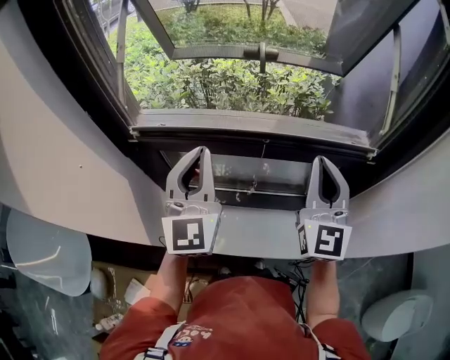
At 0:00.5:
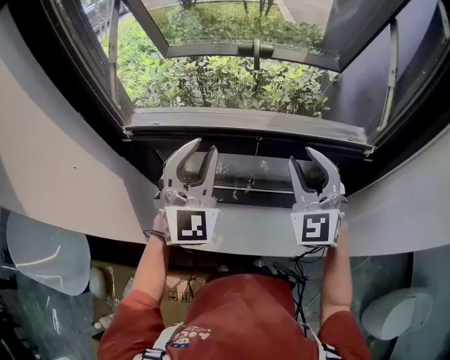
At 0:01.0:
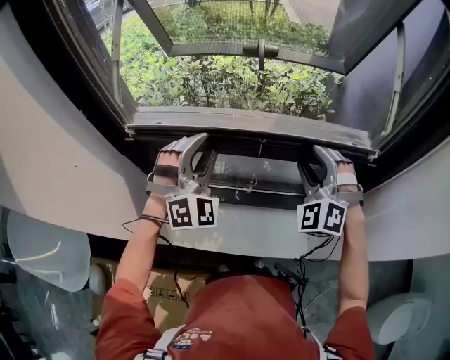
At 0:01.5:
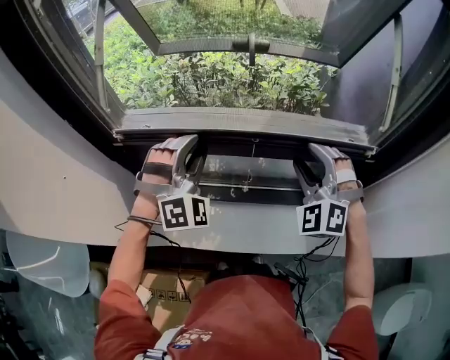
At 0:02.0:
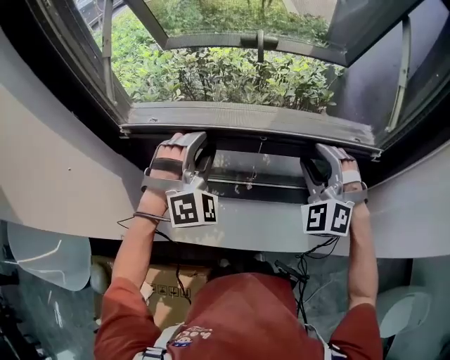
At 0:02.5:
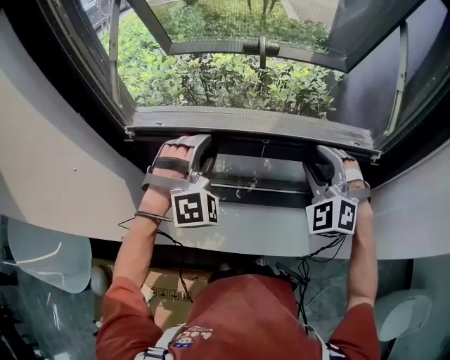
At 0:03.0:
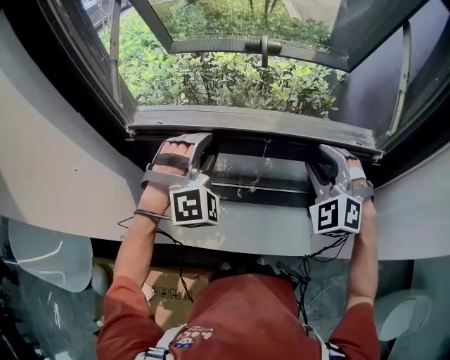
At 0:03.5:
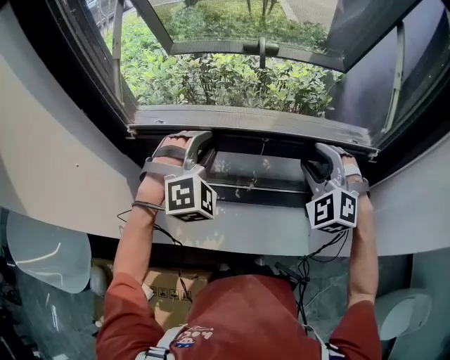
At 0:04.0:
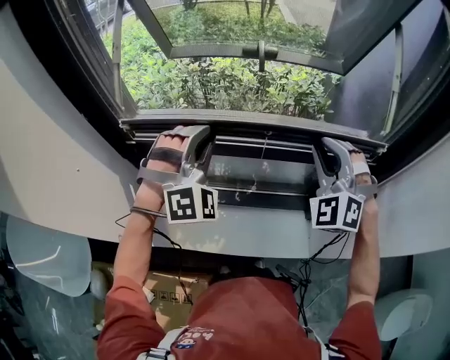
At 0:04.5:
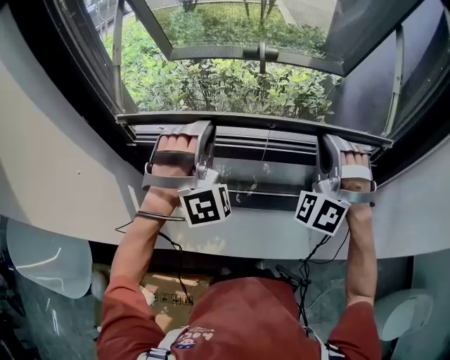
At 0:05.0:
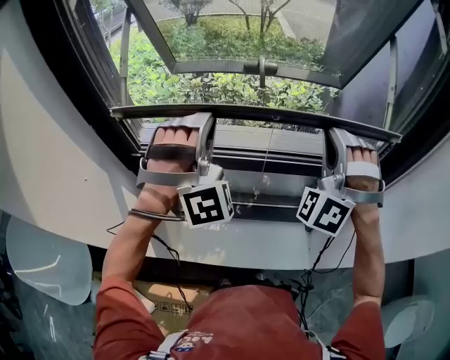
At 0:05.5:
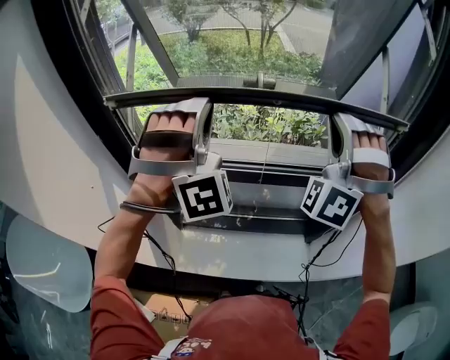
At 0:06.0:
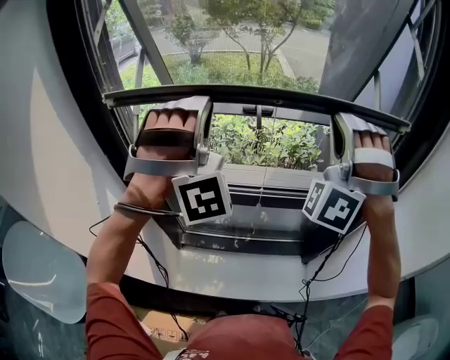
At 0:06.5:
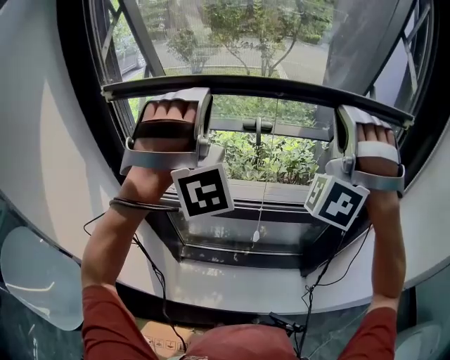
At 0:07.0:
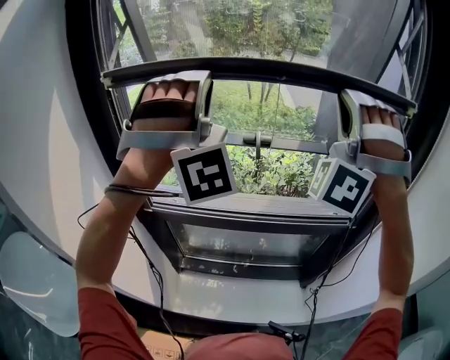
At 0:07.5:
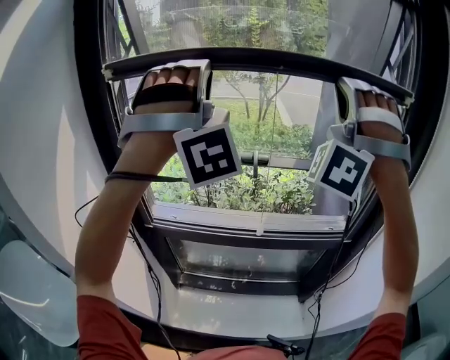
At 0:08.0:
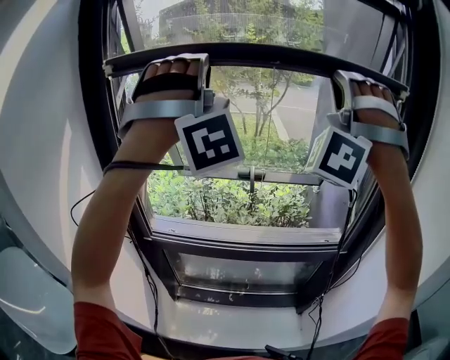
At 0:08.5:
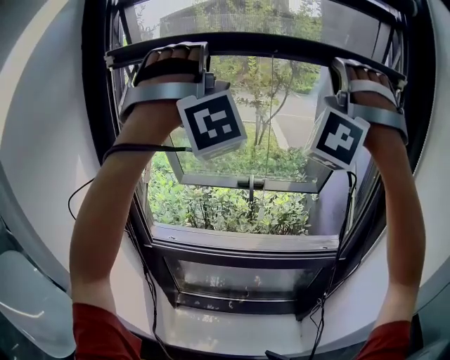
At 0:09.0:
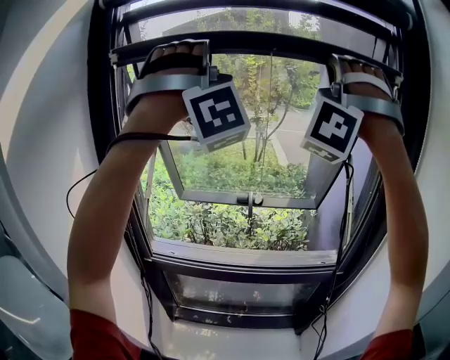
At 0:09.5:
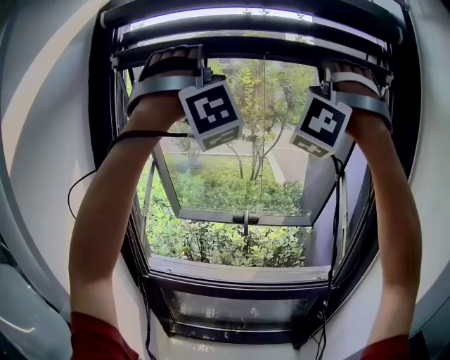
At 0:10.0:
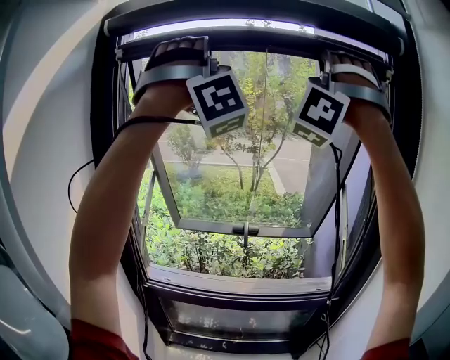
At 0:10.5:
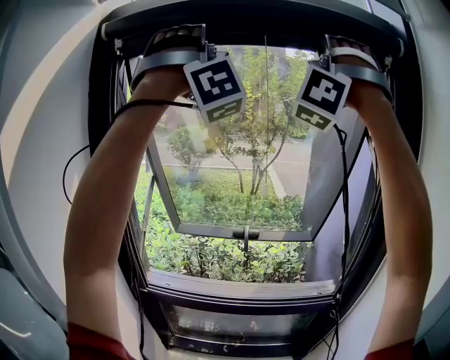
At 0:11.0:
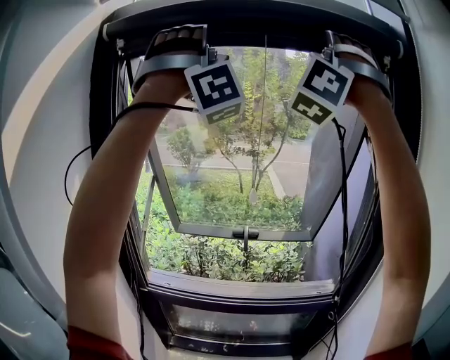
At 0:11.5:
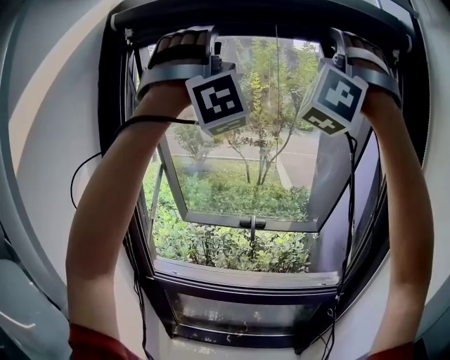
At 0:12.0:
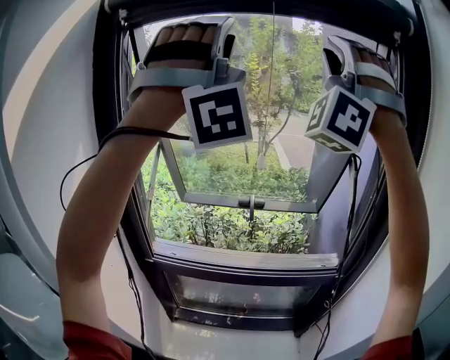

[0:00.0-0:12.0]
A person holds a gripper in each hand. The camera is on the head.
0:00.0 to 0:02.0: Both grippers move downward and forward, some 10 cm. The right gripper rotates around the line of its fingers by approximately 50 degrees, counterclockwise from behind, and opens up; the left gripper twists approximately 60 degrees clockwise, seen from behind, and opens up.
0:02.0 to 0:04.0: Both grippers move upward, about 5 cm. The left gripper closes up. The right gripper closes.
0:04.0 to 0:06.0: Both grippers move upward, roughly 20 cm. The left gripper swivels roughly 30 degrees; the right gripper rotates about 40 degrees.
0:06.0 to 0:08.0: The two grippers go roughly 25 cm upward.
0:08.0 to 0:10.0: The two grippers go some 20 cm upward.
0:10.0 to 0:12.0: The right gripper changes place by approximately 5 cm, while the left gripper moves backward, roughly 5 cm.

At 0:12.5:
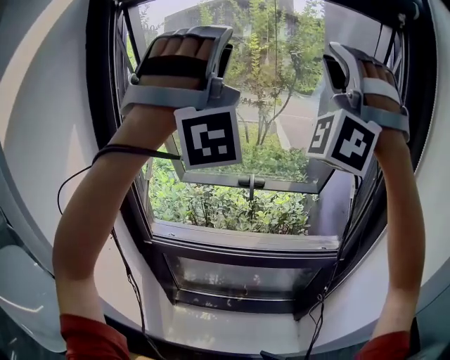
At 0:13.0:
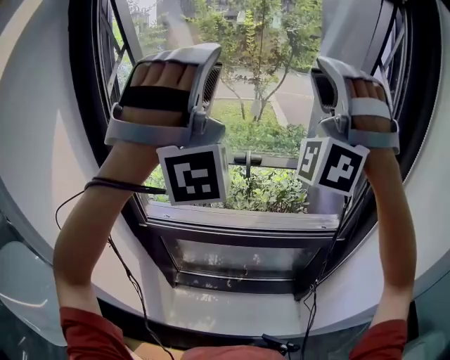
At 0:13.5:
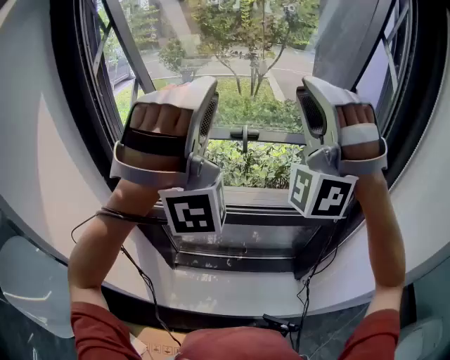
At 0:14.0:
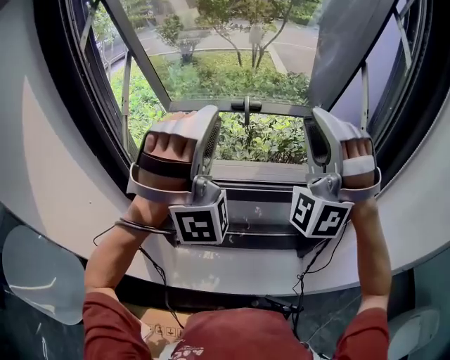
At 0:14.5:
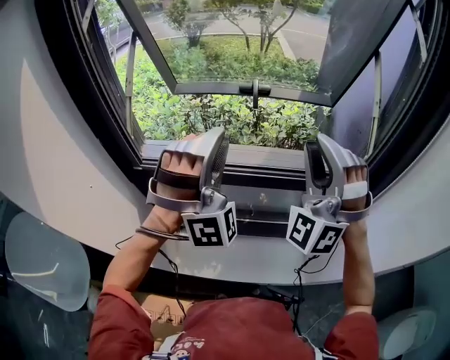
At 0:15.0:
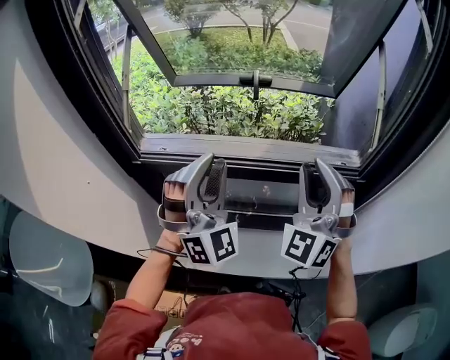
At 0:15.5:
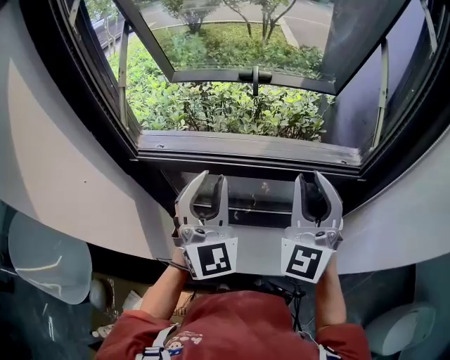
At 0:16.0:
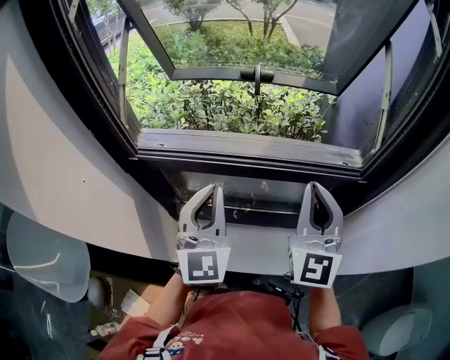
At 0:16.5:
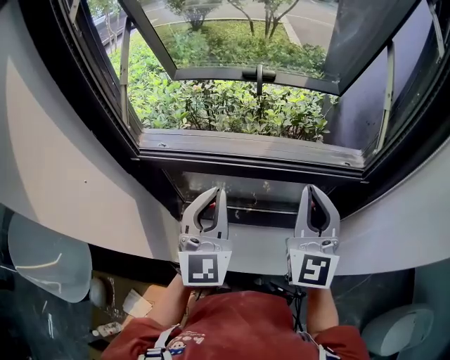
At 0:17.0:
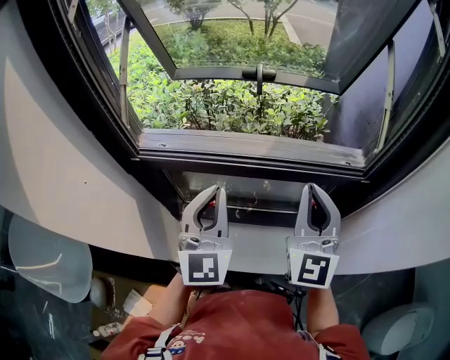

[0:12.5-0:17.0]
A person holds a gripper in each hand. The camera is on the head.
0:12.5 to 0:14.5: The two grippers go some 40 cm downward. The left gripper tilts its fingers some 30 degrees downward; the right gripper changes its angle by some 30 degrees.
0:14.5 to 0:17.0: The left gripper is displaced downward and backward by approximately 10 cm, rolls counterclockwise, seen from behind, by approximately 80 degrees, and closes, while the right gripper moves downward, some 10 cm, twists approximately 60 degrees clockwise, seen from behind, and closes its fingers.

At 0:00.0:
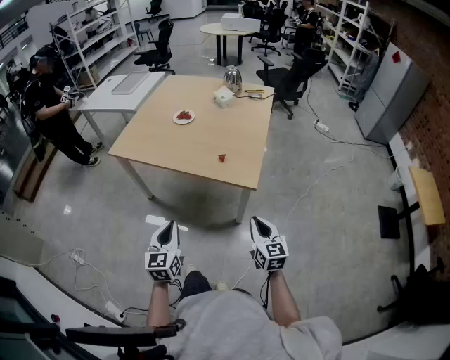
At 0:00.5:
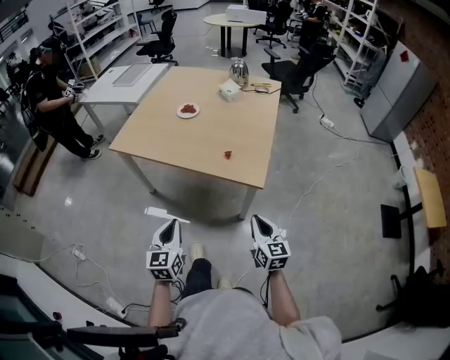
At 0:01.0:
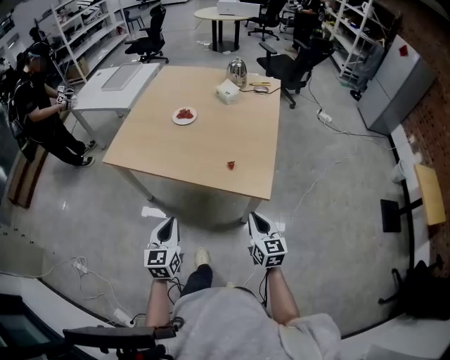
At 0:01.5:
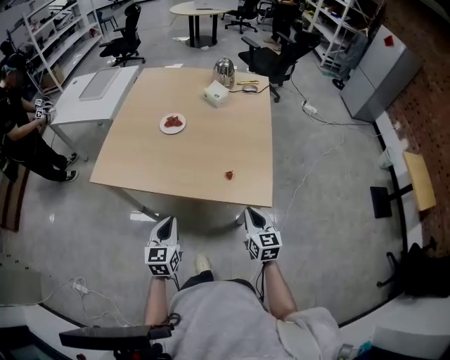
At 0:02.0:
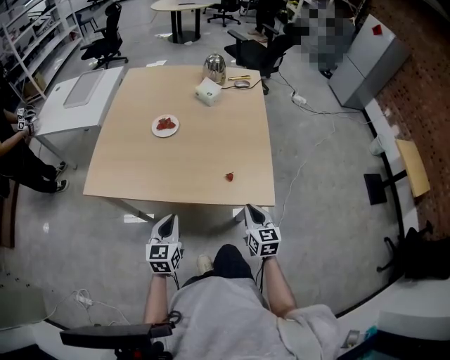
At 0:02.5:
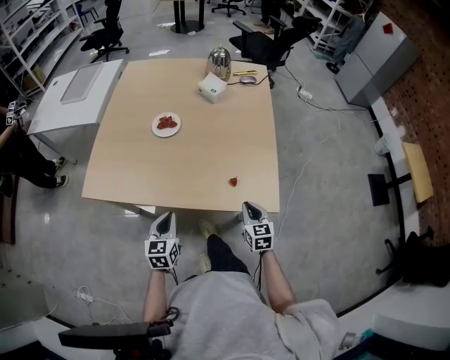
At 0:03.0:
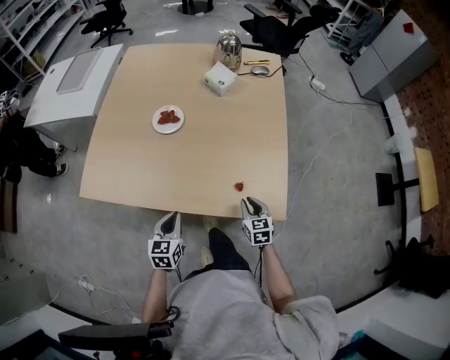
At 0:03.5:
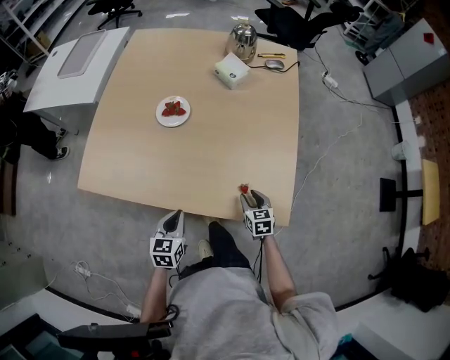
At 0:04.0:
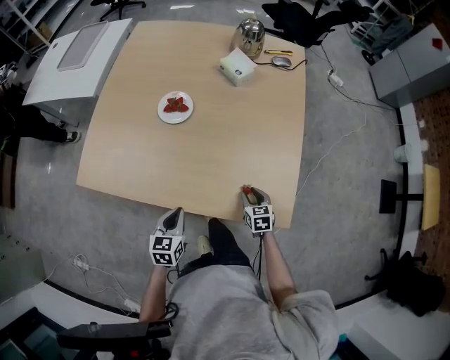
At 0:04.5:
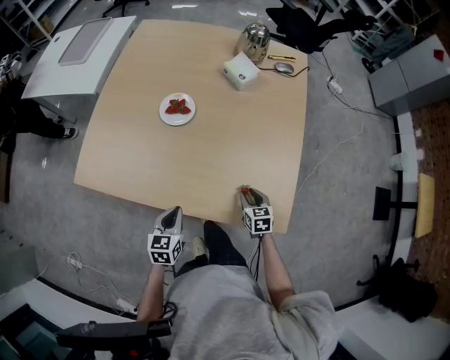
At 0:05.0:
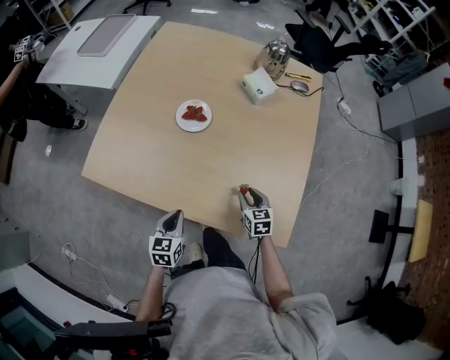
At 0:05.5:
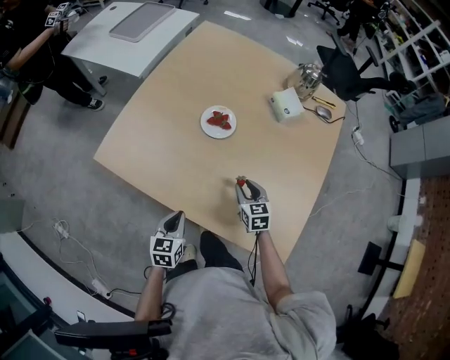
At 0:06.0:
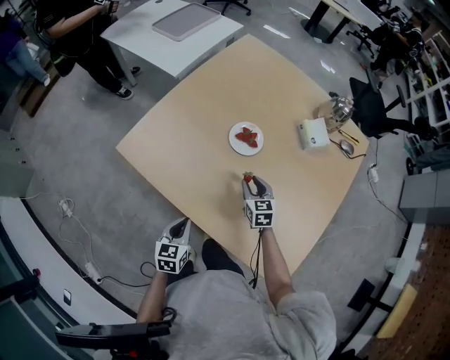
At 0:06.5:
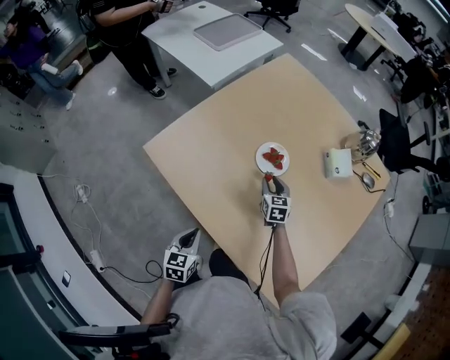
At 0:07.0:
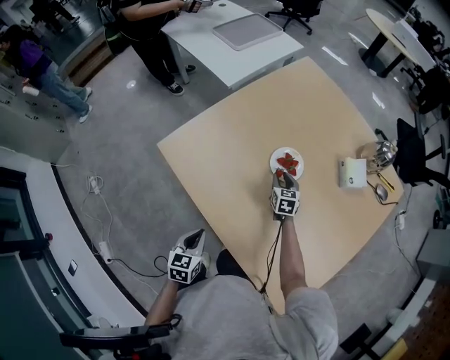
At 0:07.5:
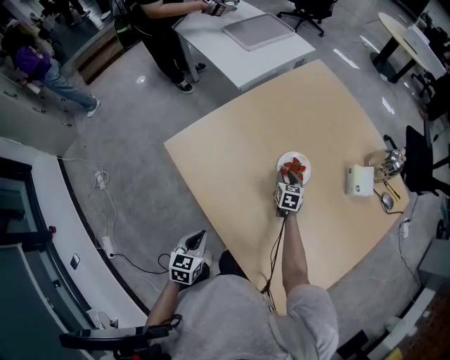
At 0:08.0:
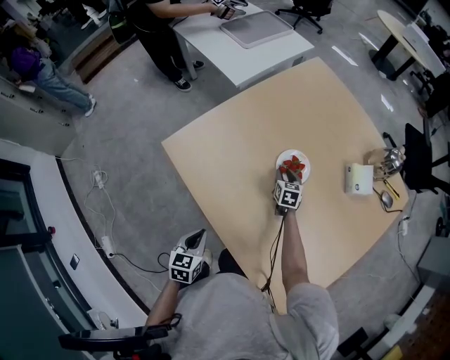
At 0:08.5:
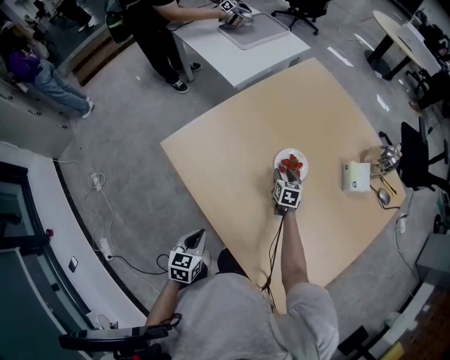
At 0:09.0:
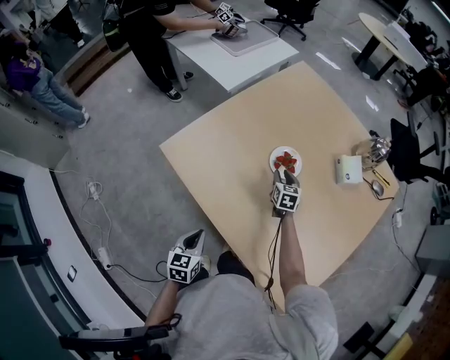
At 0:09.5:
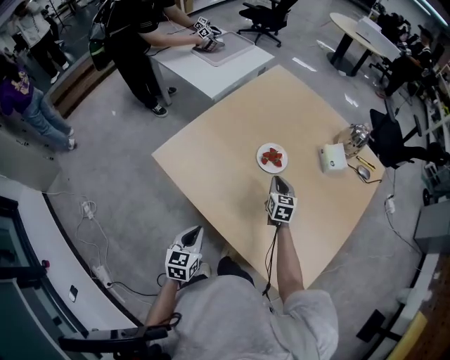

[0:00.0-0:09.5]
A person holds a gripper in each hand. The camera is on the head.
0:00.0 to 0:02.0: The left gripper is displaced forward by some 30 cm, while the right gripper moves forward and to the left, roughly 25 cm.
0:02.0 to 0:04.0: The left gripper moves forward and downward, about 15 cm. Meanwhile the right gripper goes roughly 25 cm downward and forward, swivels about 30 degrees, and opens up.
0:04.0 to 0:05.5: The right gripper goes roughly 20 cm forward, to the left and upward, and rotates approximately 20 degrees. Meanwhile the left gripper travels to the left by about 5 cm.
0:05.5 to 0:07.5: The left gripper goes some 5 cm to the left, and turns by some 20 degrees, while the right gripper moves forward, about 25 cm.
0:07.5 to 0:09.5: The right gripper travels upward and backward by some 15 cm, and closes up. Meanwhile the left gripper ends up some 5 cm from where it was.
